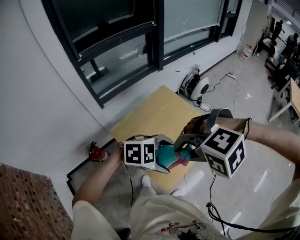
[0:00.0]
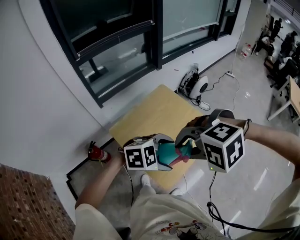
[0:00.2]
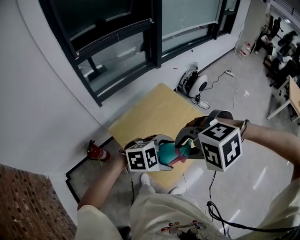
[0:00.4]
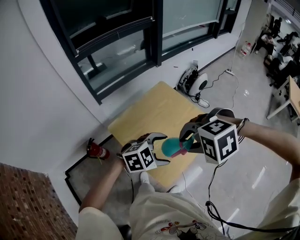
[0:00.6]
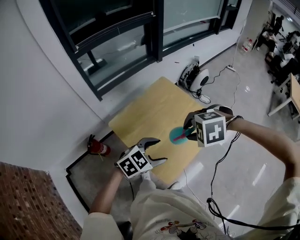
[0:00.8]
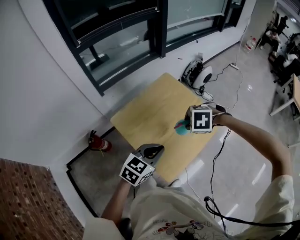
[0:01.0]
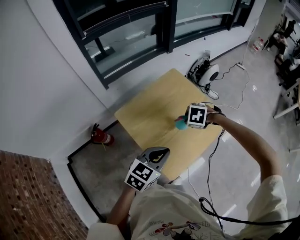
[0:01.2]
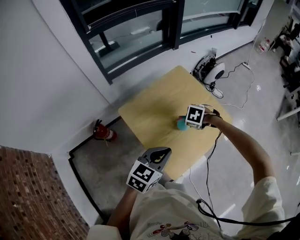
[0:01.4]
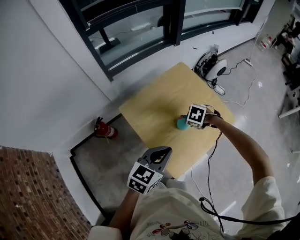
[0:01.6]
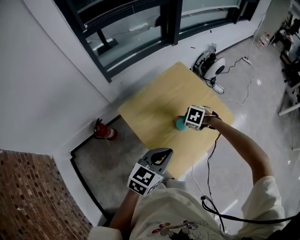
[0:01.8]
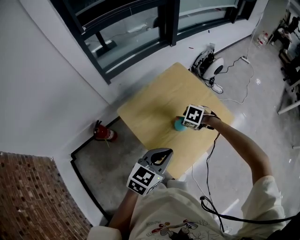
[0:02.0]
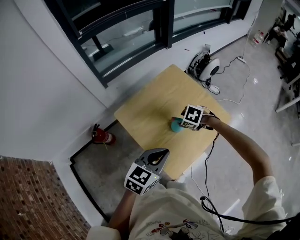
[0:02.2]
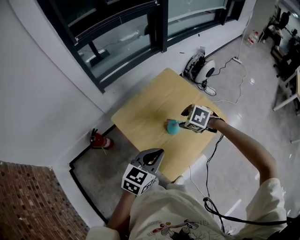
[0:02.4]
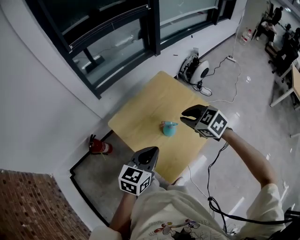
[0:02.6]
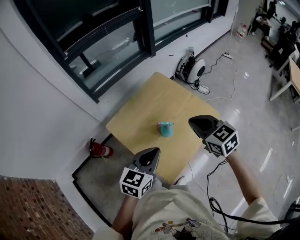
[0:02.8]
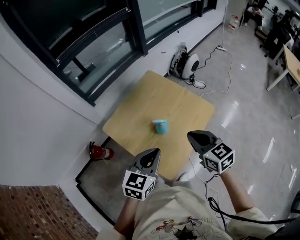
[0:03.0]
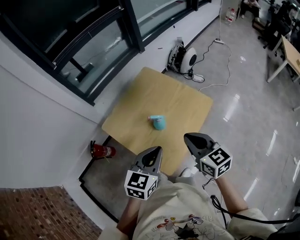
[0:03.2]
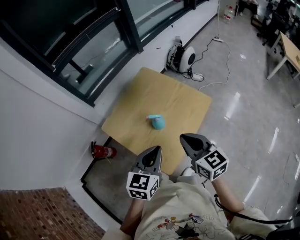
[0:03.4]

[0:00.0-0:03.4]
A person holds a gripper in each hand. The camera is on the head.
0.0 to 1.6 s: The left gripper shifts by roughly 10 cm, turns by some 70 degrees, and closes up. The right gripper goes some 35 cm downward, and twists approximately 60 degrees clockwise, seen from behind.
1.6 to 3.4 s: The right gripper travels upward by some 20 cm, points its fingers about 60 degrees further upward, and closes. Meanwhile the left gripper ends up roughly 10 cm from where it was.

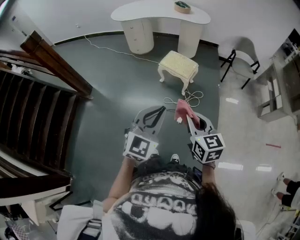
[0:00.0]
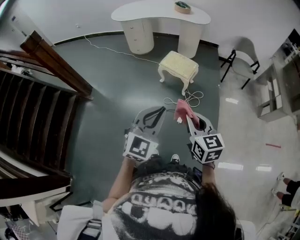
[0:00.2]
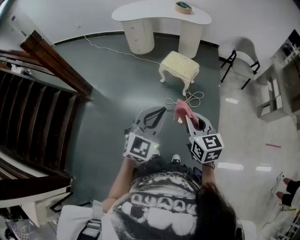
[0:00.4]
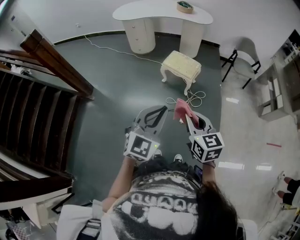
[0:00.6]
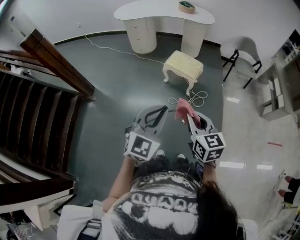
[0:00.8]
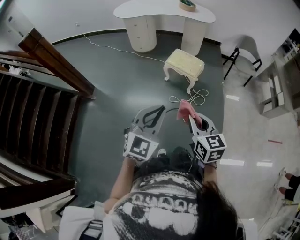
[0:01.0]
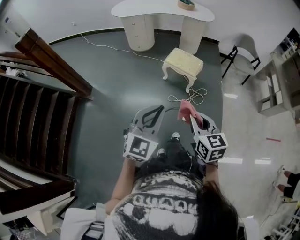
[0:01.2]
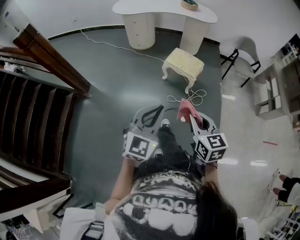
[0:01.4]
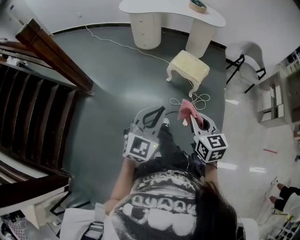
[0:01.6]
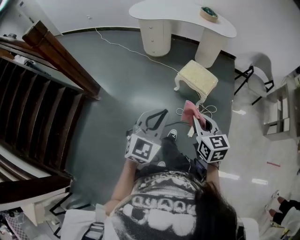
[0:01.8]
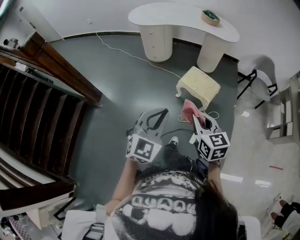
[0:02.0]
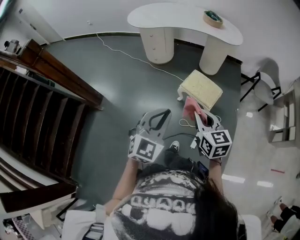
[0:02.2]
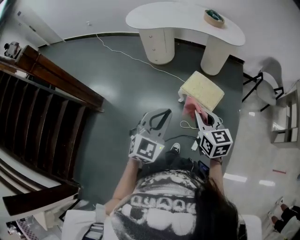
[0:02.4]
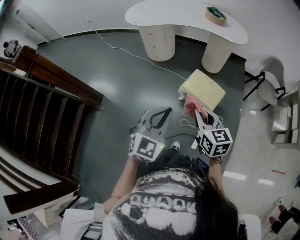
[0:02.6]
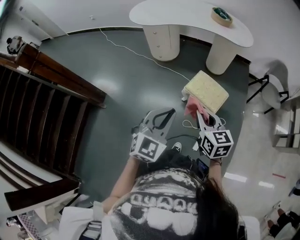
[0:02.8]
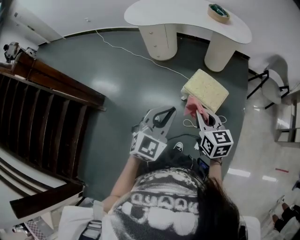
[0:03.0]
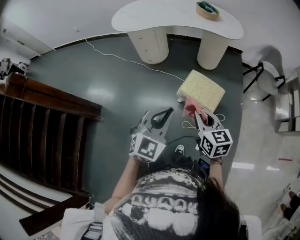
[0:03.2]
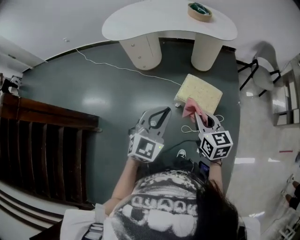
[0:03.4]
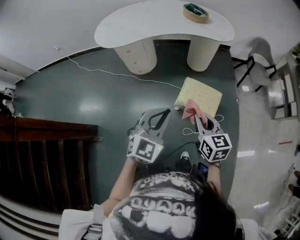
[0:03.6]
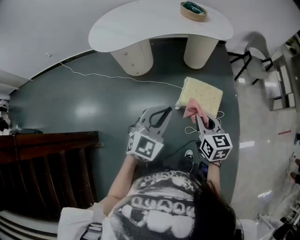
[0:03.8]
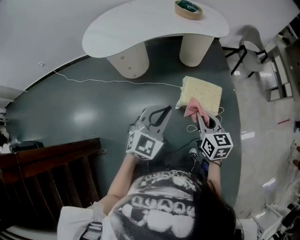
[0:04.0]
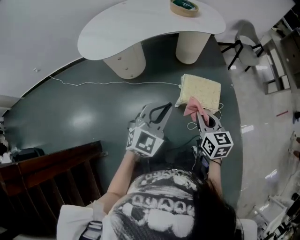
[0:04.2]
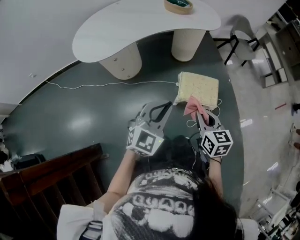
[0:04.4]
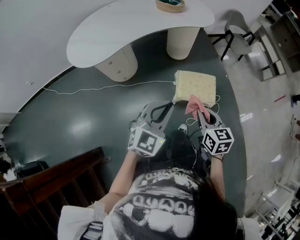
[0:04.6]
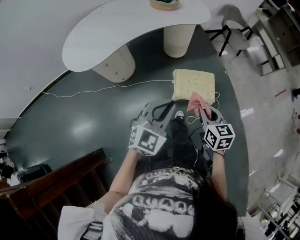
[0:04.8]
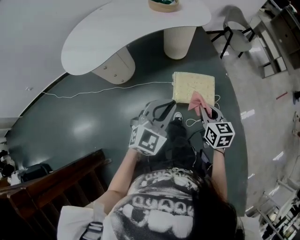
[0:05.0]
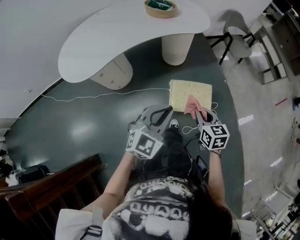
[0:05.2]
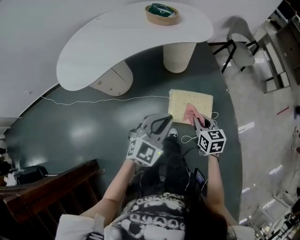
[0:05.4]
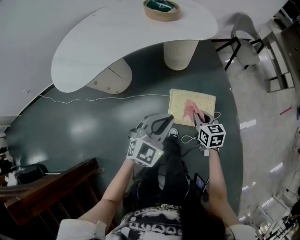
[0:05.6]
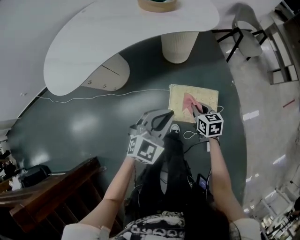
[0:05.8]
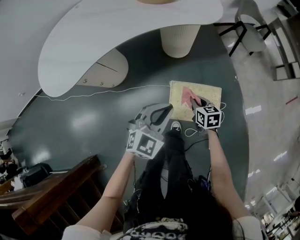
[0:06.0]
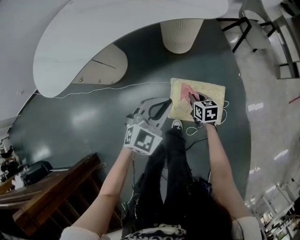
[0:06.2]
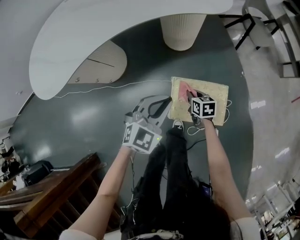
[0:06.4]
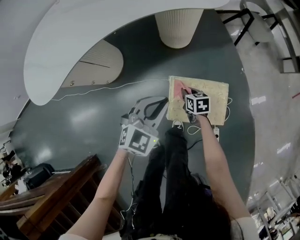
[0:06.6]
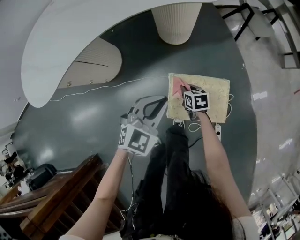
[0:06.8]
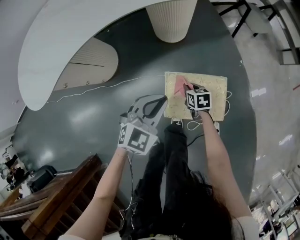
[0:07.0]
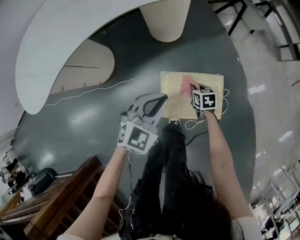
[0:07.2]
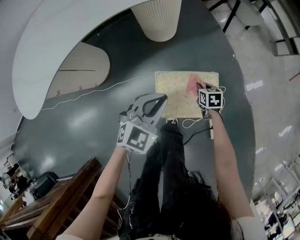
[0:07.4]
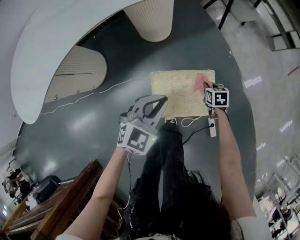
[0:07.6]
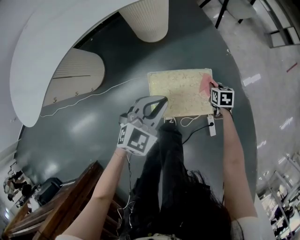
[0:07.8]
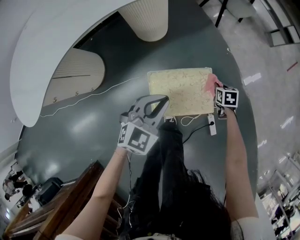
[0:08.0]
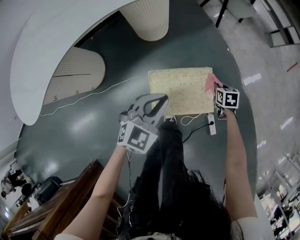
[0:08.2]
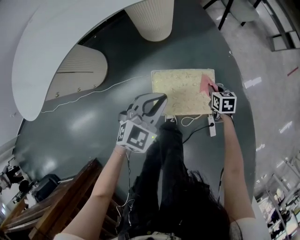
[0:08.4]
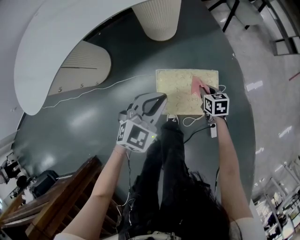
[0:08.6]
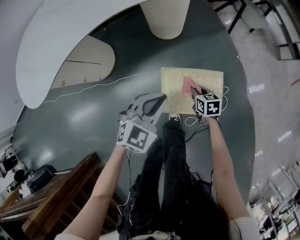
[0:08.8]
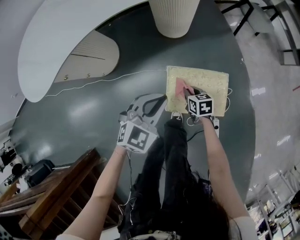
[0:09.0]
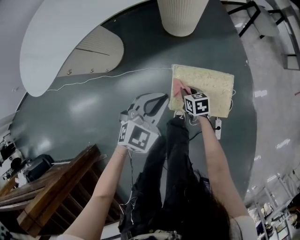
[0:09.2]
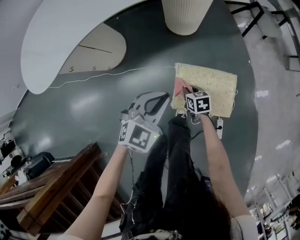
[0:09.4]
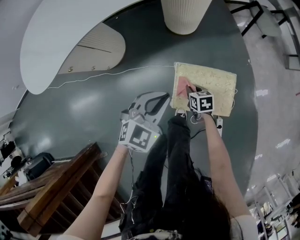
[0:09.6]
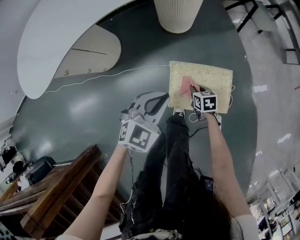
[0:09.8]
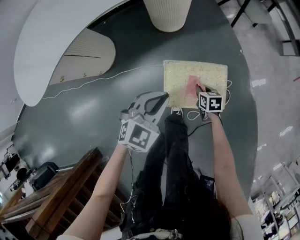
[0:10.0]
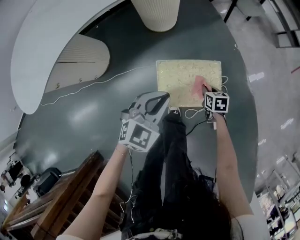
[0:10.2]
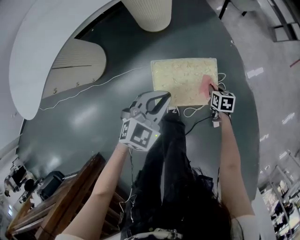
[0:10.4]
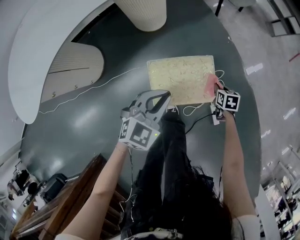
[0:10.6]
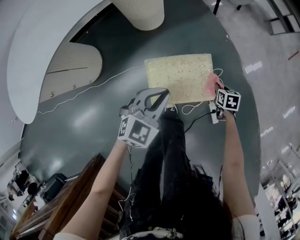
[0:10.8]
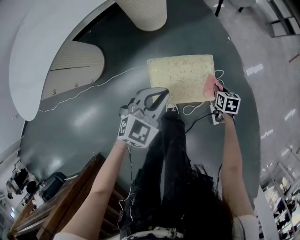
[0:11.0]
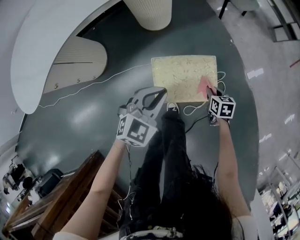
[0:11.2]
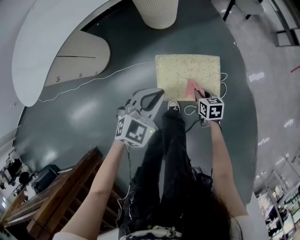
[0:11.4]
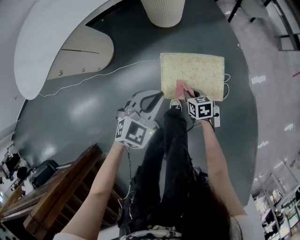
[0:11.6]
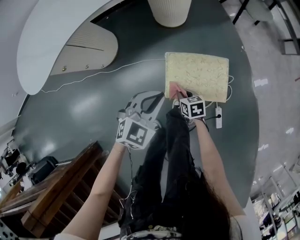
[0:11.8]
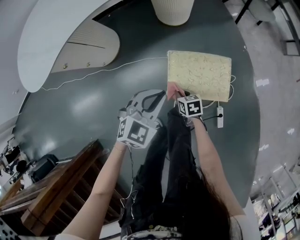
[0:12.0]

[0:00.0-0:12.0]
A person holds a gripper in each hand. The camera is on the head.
0.0 to 1.6 s: The two grippers go roughly 15 cm to the left and forward.
1.6 to 3.0 s: Both grippers move forward, some 35 cm.
3.0 to 4.4 s: The right gripper changes place by some 20 cm, and turns by roughly 30 degrees. Meanwhile the left gripper changes place by about 30 cm, and swivels roughly 30 degrees.
4.4 to 6.0 s: The right gripper travels downward and forward by some 40 cm. The left gripper is displaced forward and downward by roughly 30 cm.
6.0 to 7.6 s: The right gripper shifts approximately 25 cm to the right and downward, and changes its angle by some 20 degrees. Meanwhile the left gripper is displaced downward and to the right by approximately 15 cm.
7.6 to 9.0 s: The left gripper travels to the left by approximately 5 cm. The right gripper shifts roughly 20 cm to the left and backward.
9.0 to 10.4 s: The right gripper goes approximately 20 cm to the right, and changes its angle by about 20 degrees; the left gripper heads to the right, covering some 10 cm.
10.4 to 12.0 s: The right gripper shifts by approximately 25 cm, and changes its angle by about 20 degrees. The left gripper ends up roughly 10 cm from where it was.

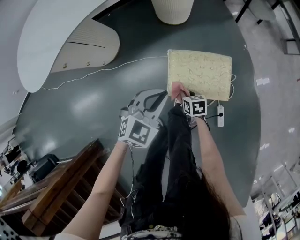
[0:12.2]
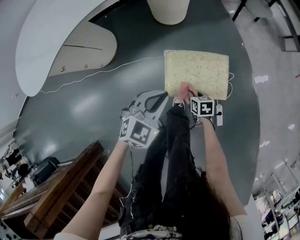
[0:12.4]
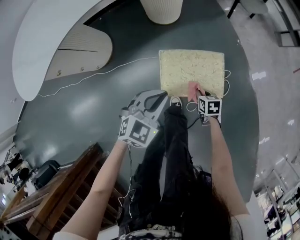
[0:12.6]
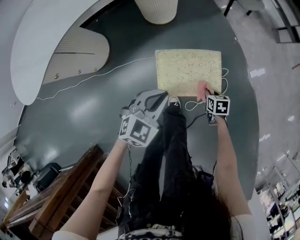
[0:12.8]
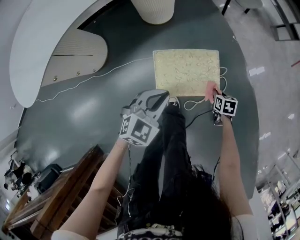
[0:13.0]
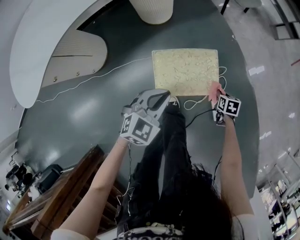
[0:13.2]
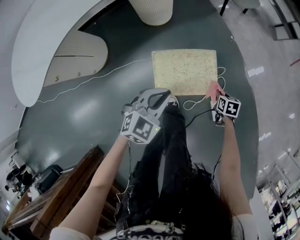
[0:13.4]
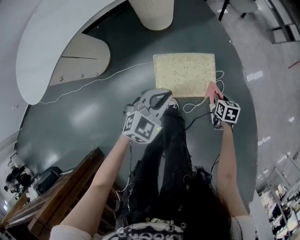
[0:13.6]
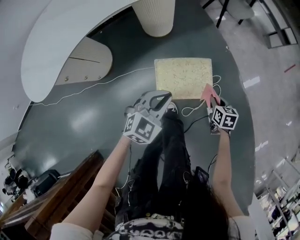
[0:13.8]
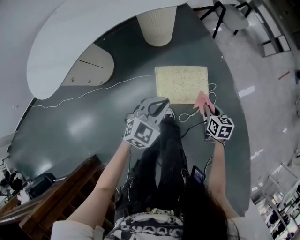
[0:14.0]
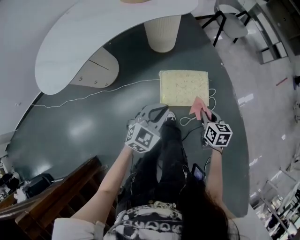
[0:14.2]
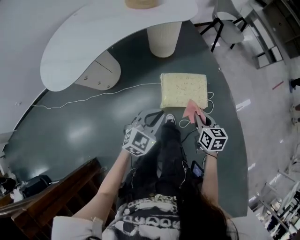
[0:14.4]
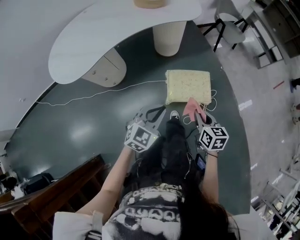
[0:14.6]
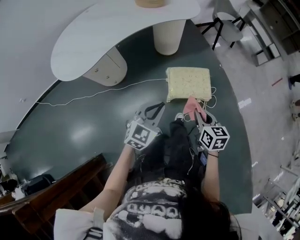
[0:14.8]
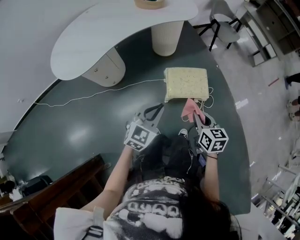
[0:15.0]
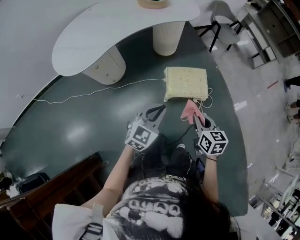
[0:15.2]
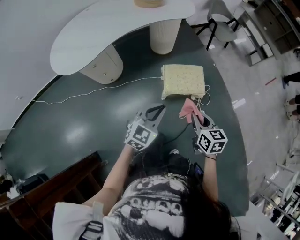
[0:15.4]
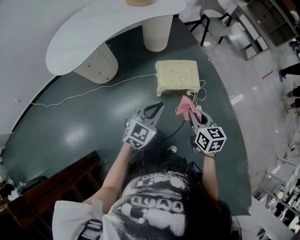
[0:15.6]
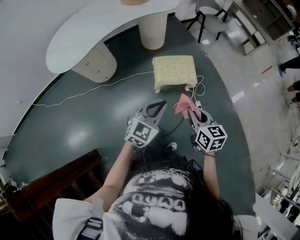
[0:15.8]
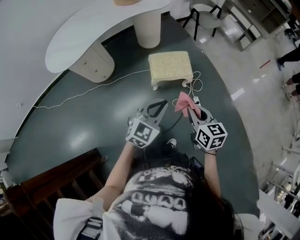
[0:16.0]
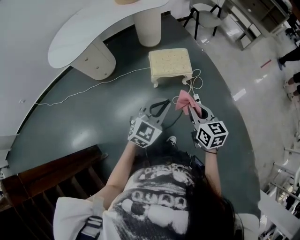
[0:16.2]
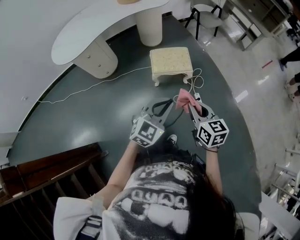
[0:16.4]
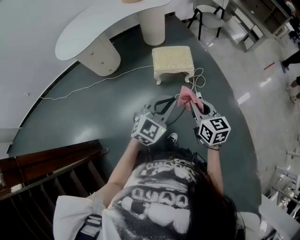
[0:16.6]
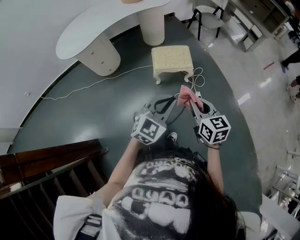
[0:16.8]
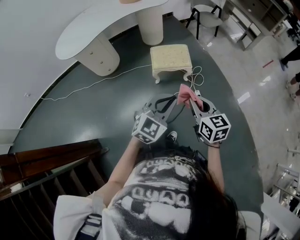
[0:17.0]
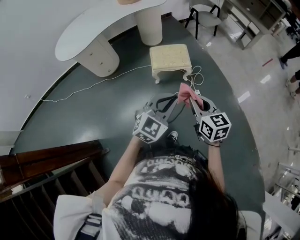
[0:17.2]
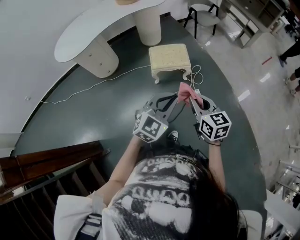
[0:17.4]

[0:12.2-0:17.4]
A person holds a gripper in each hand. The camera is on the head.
12.2 to 14.0 s: The left gripper shifts about 10 cm upward, while the right gripper heads upward, covering some 20 cm, and changes its angle by about 20 degrees.
14.0 to 15.6 s: The left gripper heads backward and upward, covering approximately 25 cm, while the right gripper shifts some 35 cm upward, backward and to the left.
15.6 to 17.4 s: The grippers both shift backward and to the right by about 25 cm.

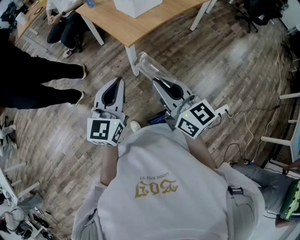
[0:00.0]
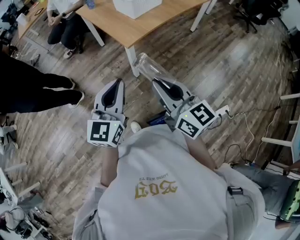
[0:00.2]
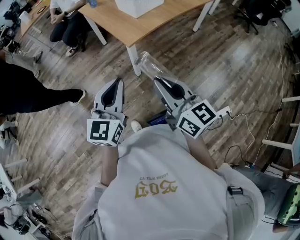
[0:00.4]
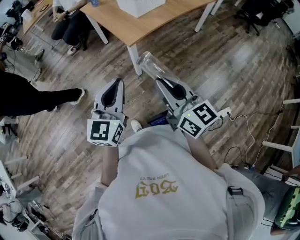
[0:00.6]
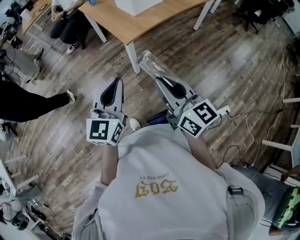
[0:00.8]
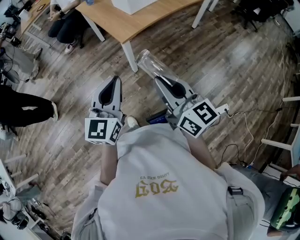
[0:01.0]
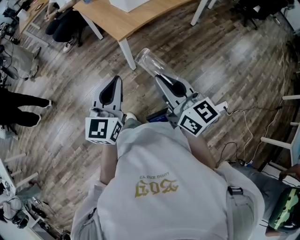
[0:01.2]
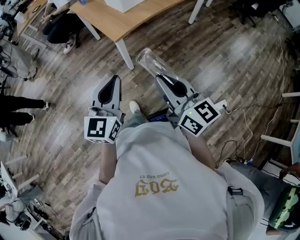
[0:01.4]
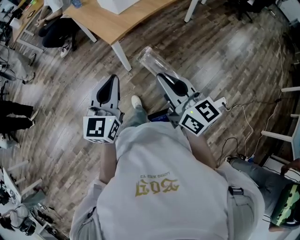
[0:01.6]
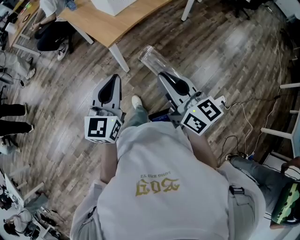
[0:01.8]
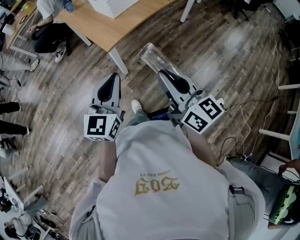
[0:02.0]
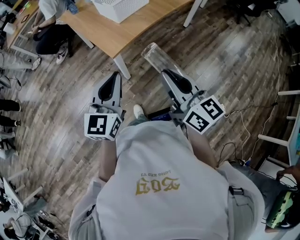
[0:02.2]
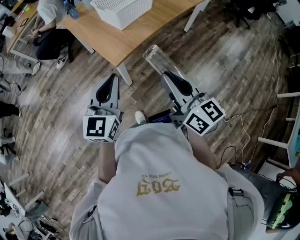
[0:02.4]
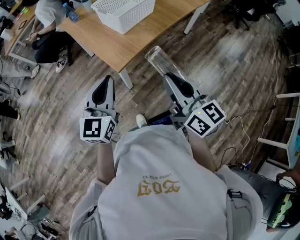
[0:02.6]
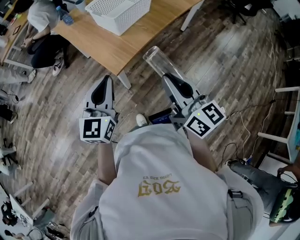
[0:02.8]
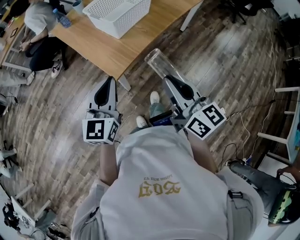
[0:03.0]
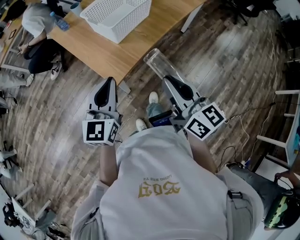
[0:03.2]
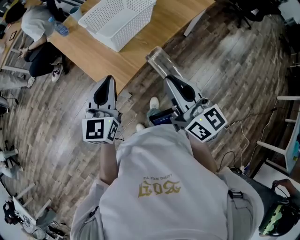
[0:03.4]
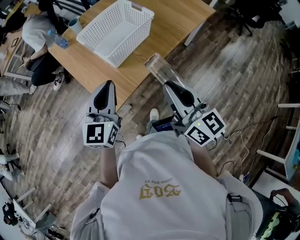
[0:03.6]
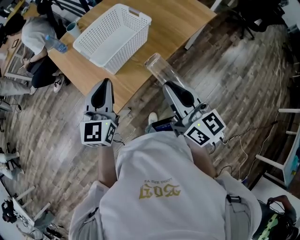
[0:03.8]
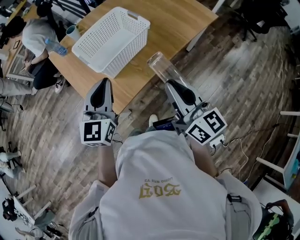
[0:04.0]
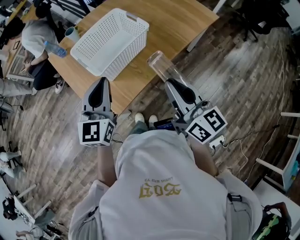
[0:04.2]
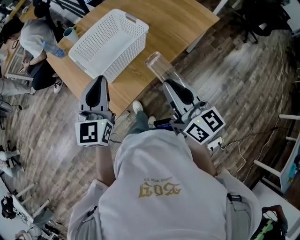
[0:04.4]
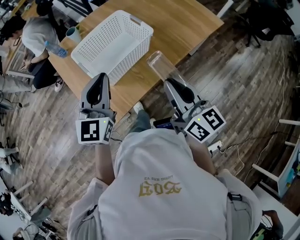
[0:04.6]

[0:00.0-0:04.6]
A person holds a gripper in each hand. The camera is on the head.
0.0 to 1.6 s: The grippers both shift to the right by about 10 cm.
1.6 to 3.0 s: Both grippers move forward, roughly 25 cm.
3.0 to 4.6 s: The grippers both shift forward and to the right by approximately 30 cm.
